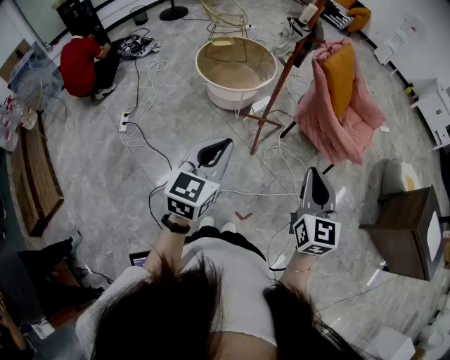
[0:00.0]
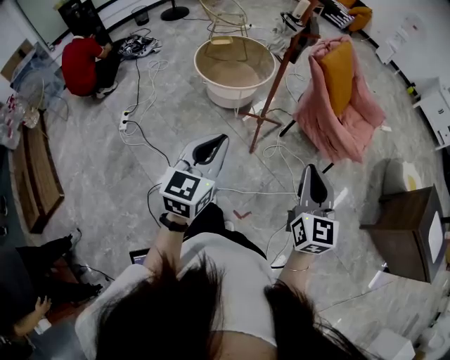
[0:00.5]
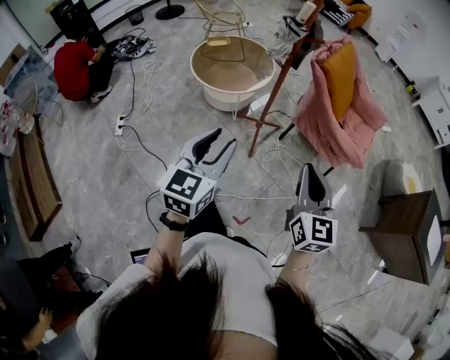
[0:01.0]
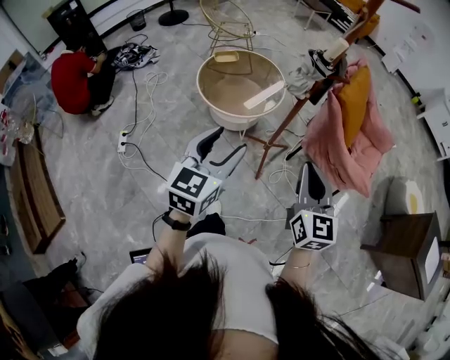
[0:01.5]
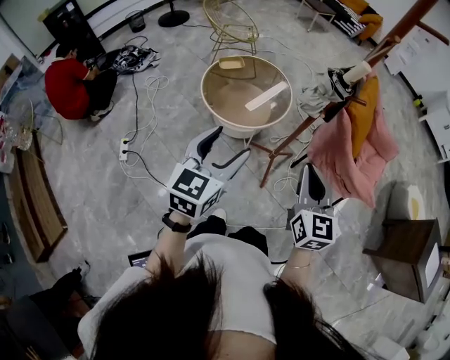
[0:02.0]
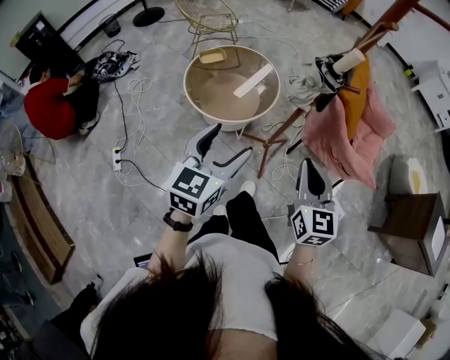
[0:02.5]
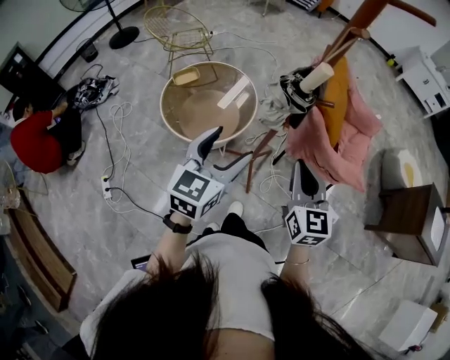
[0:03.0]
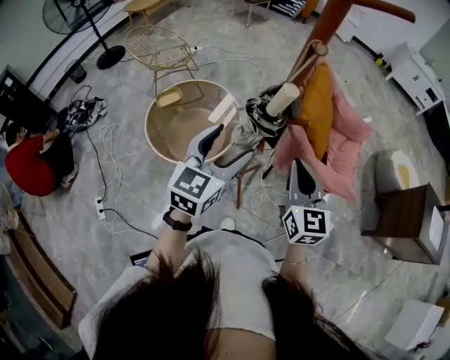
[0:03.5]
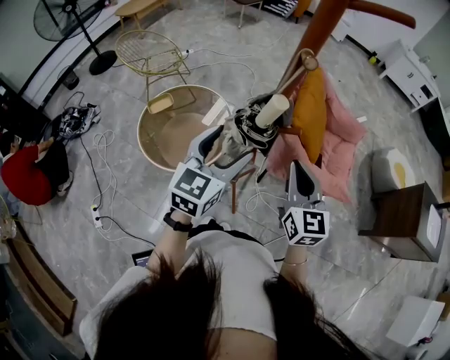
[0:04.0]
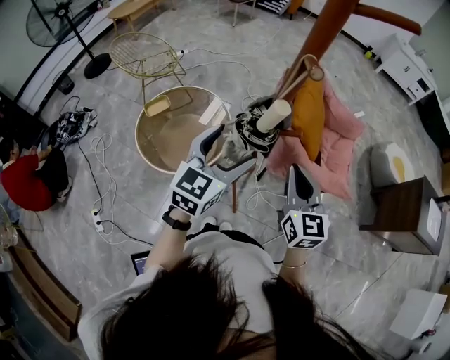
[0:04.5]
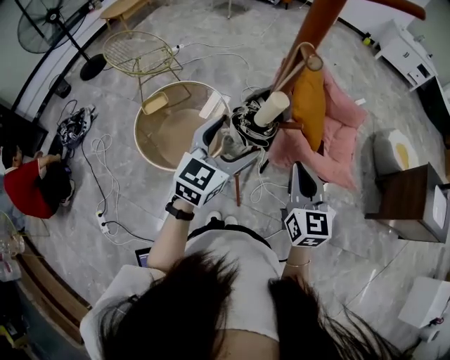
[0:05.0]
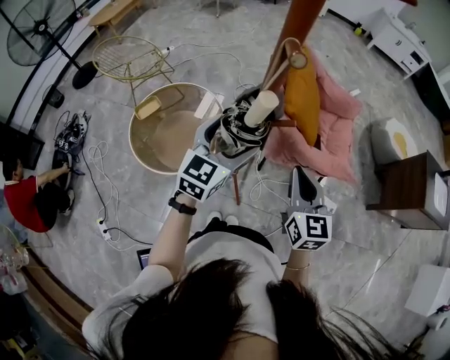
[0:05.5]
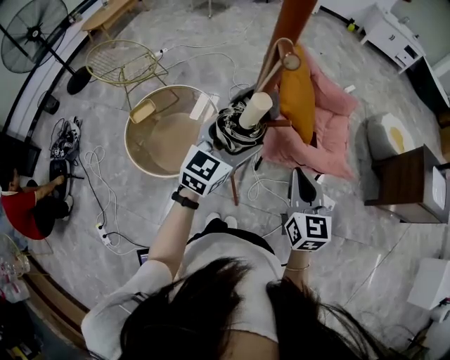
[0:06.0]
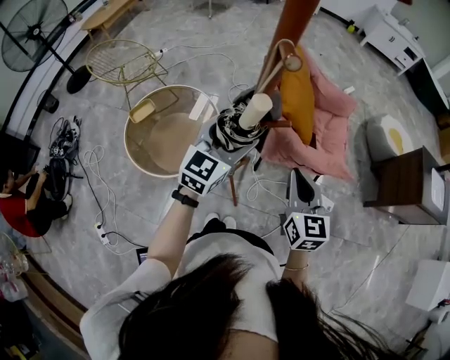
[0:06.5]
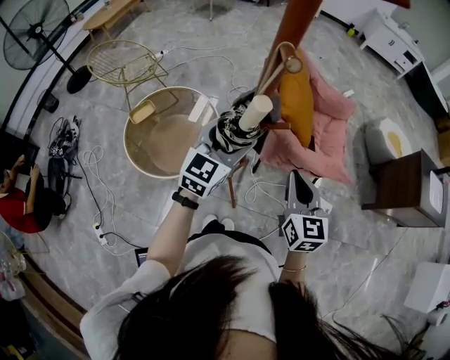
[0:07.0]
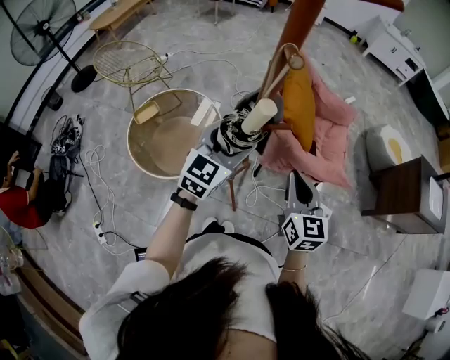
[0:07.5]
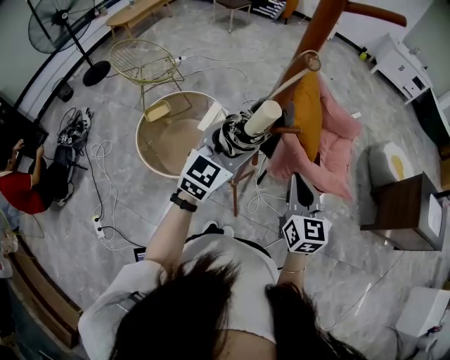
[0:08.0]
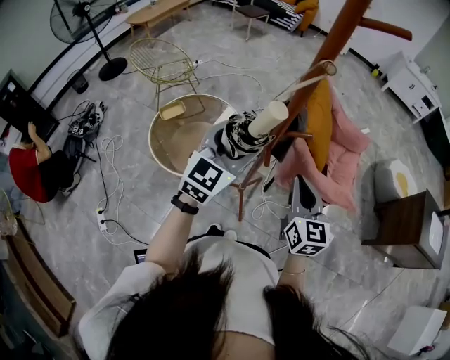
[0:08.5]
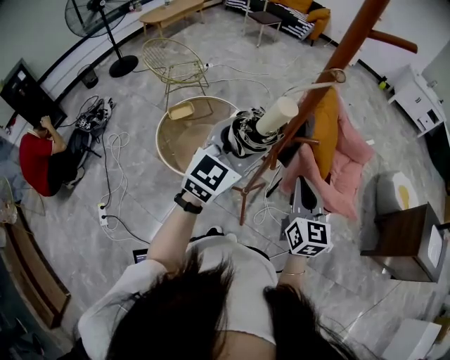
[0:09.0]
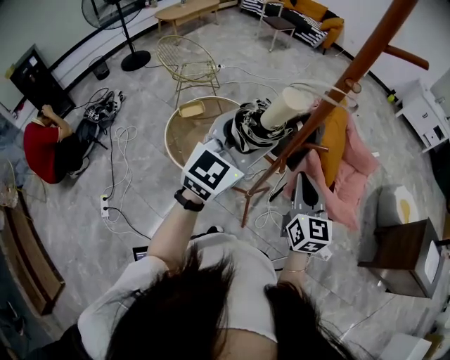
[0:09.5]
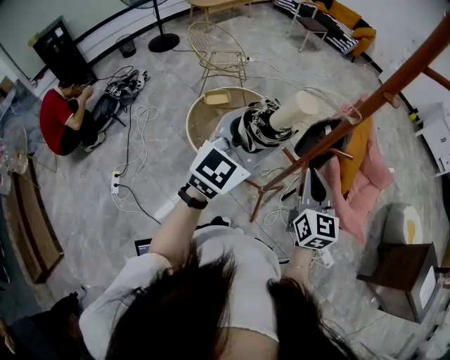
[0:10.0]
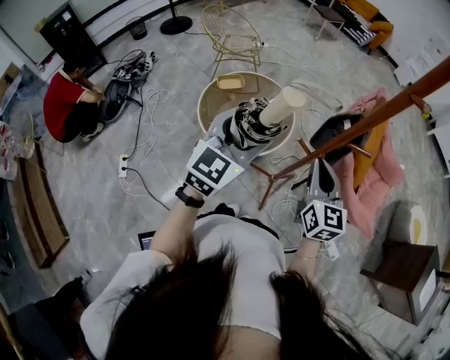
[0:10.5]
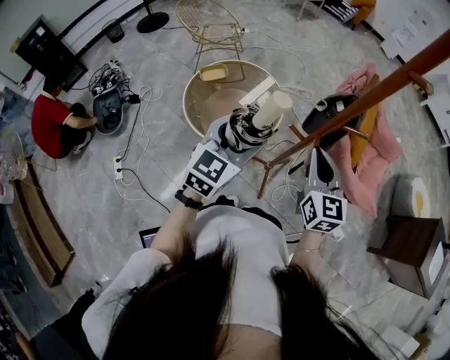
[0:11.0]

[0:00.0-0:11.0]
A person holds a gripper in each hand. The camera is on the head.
0:00.0 to 0:02.0: The two grippers go about 30 cm forward and to the left. The left gripper opens up.
0:02.0 to 0:03.5: Both grippers travel together forward and to the right, some 25 cm.
0:03.5 to 0:05.5: The left gripper shifts roughly 10 cm forward, while the right gripper changes place by some 5 cm.
0:05.5 to 0:07.5: There are only small adjustments of the grippers.
0:07.5 to 0:09.0: The right gripper travels to the left by some 5 cm. Meanwhile the left gripper moves upward, backward and to the left, about 15 cm.
0:09.0 to 0:11.0: The left gripper travels to the left and downward by approximately 15 cm. The right gripper shifts some 10 cm to the left.

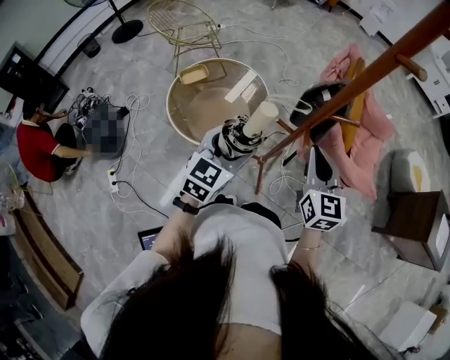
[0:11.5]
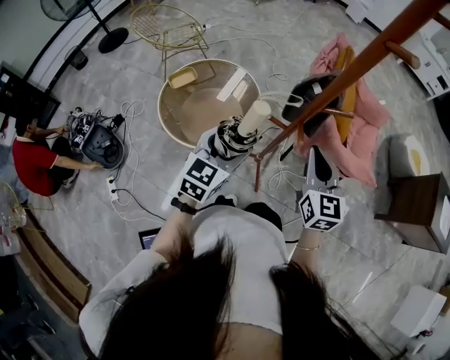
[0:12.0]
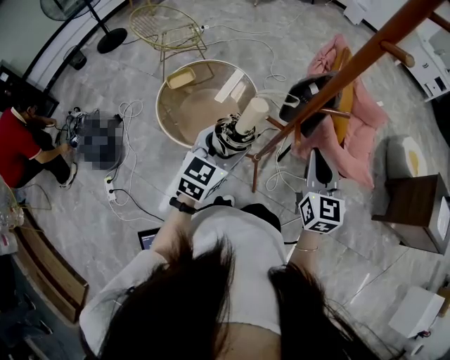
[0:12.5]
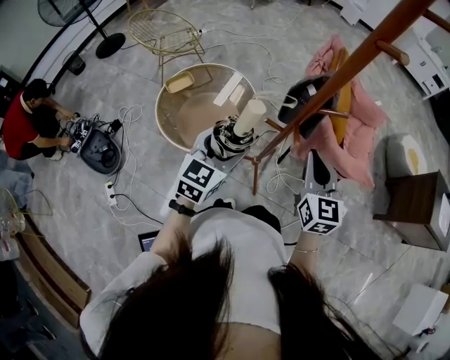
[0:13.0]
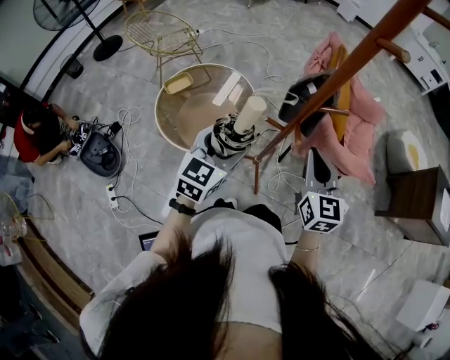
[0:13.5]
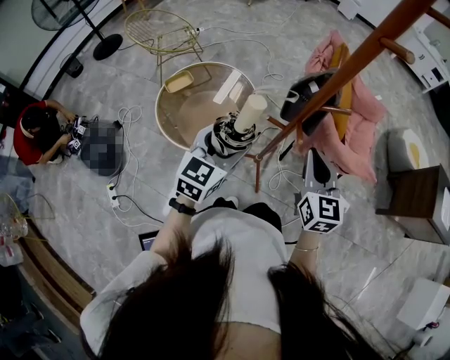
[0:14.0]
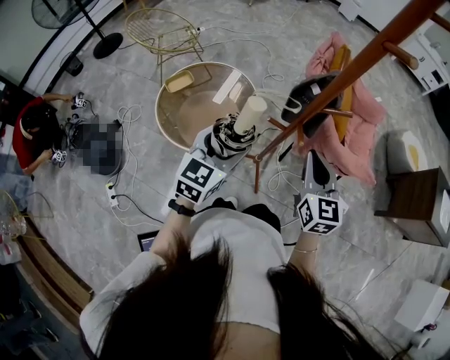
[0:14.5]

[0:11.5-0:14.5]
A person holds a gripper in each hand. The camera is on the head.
0:11.5 to 0:13.0: The grippers stay close to where they were, moving slightly.
0:13.0 to 0:14.5: Neither gripper changes place.

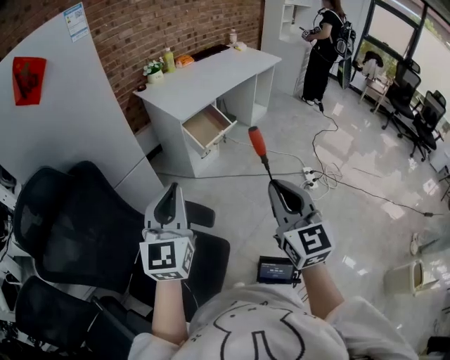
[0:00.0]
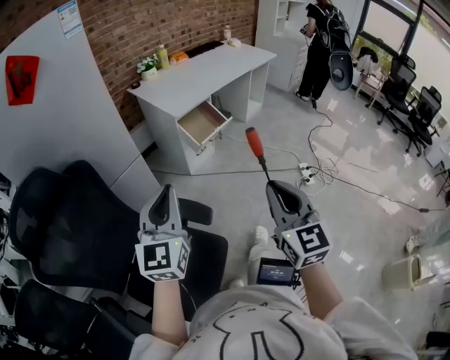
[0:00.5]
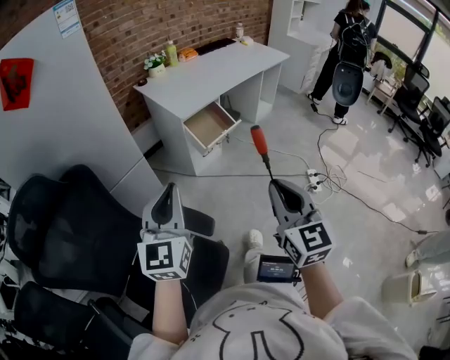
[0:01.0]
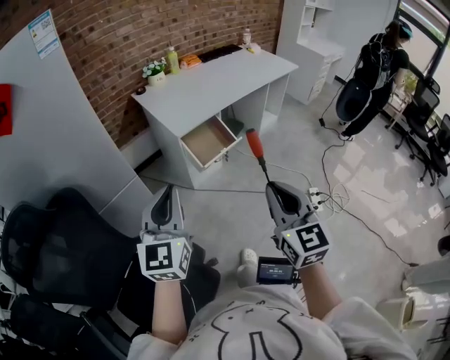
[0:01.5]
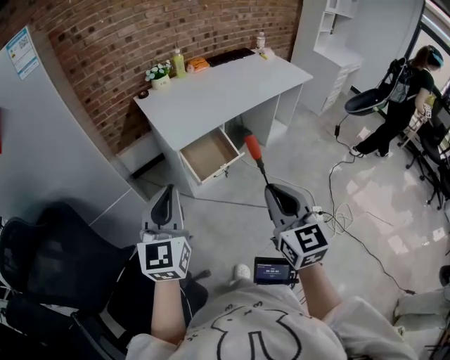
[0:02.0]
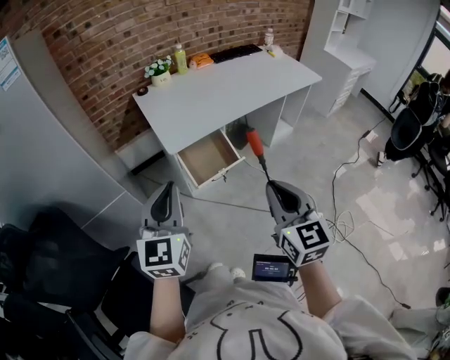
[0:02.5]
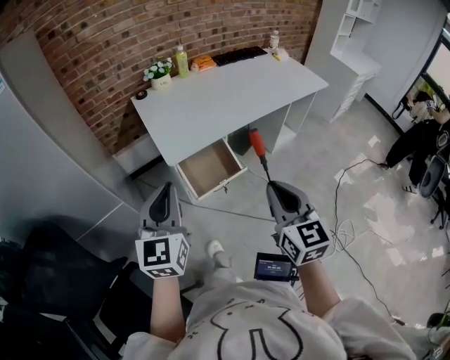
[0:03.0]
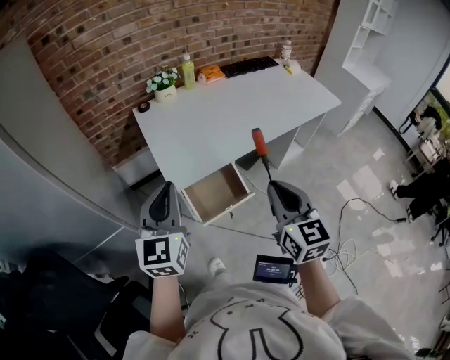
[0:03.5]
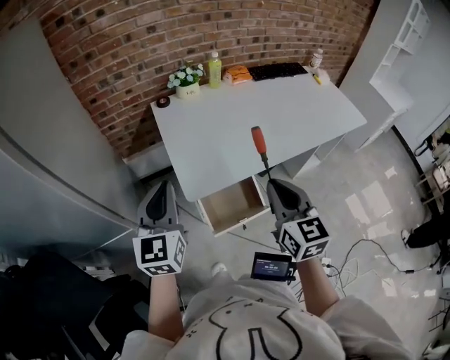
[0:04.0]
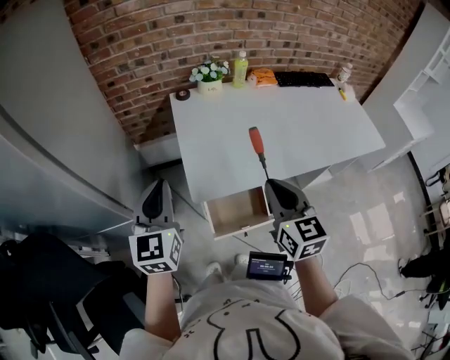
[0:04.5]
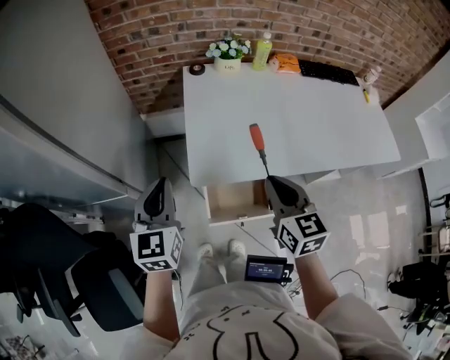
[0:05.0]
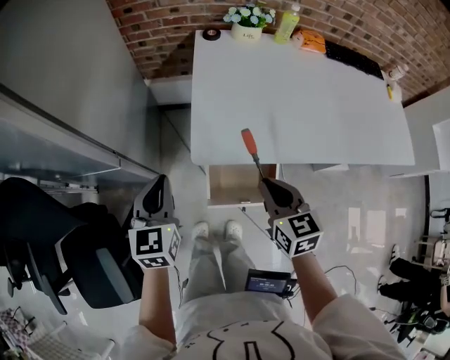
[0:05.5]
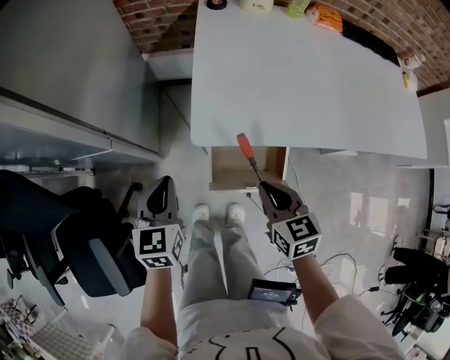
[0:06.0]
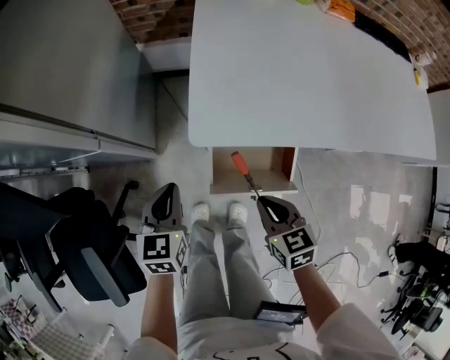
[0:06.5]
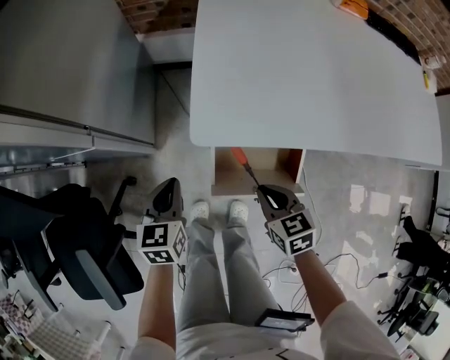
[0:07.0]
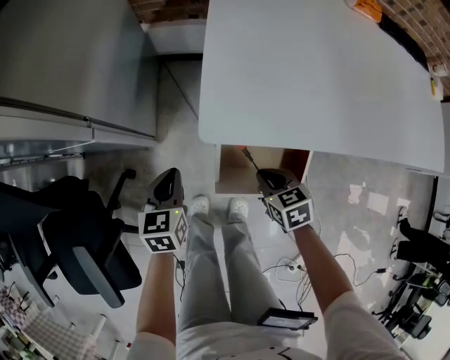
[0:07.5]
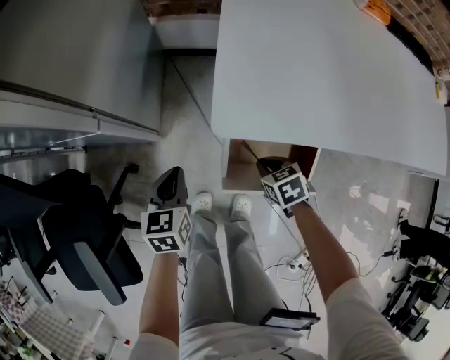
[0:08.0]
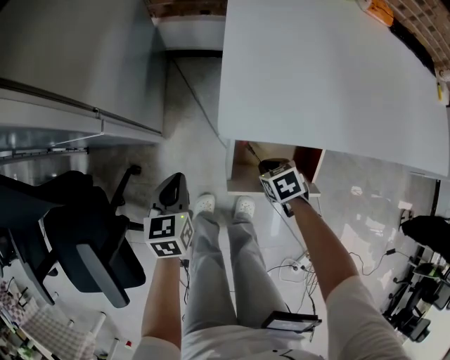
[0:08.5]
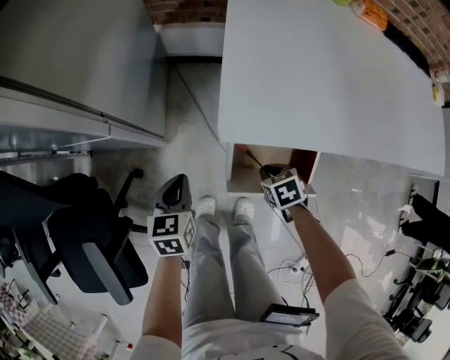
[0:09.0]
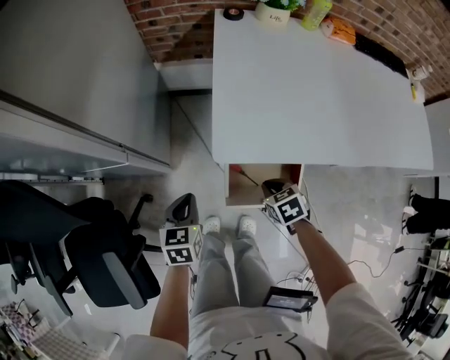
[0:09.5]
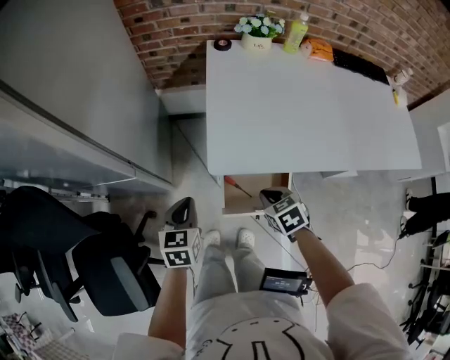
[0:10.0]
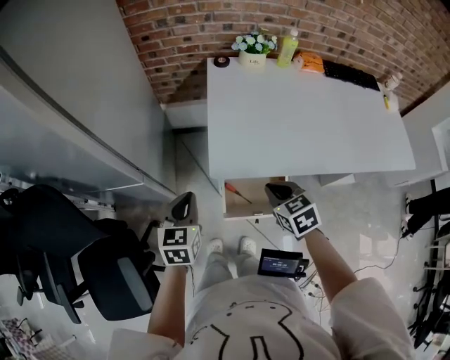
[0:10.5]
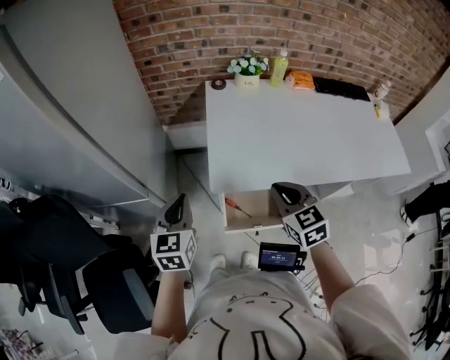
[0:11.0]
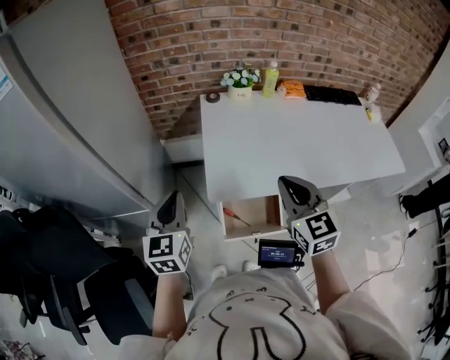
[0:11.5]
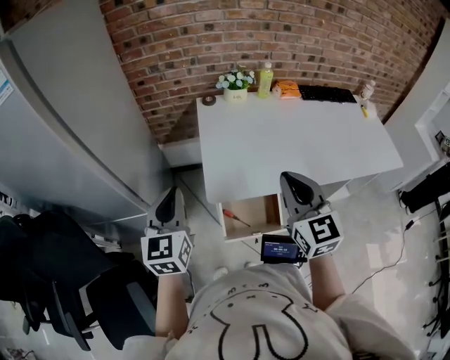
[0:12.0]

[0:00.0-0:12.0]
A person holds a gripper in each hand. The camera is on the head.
0:00.0 to 0:02.0: Both grippers move forward, roughly 30 cm.
0:02.0 to 0:04.0: Both grippers travel together forward, roughly 35 cm.
0:04.0 to 0:06.0: Both grippers move downward, roughly 25 cm. The right gripper changes its angle by approximately 40 degrees. Meanwhile the left gripper swivels about 30 degrees.
0:06.0 to 0:08.0: Both grippers move downward, approximately 20 cm. The right gripper changes its angle by approximately 30 degrees.
0:08.0 to 0:10.0: The two grippers go roughly 15 cm upward.
0:10.0 to 0:12.0: Both grippers move upward, approximately 30 cm. The right gripper angles its fingers upward, by approximately 50 degrees. Meanwhile the left gripper changes its angle by about 30 degrees.

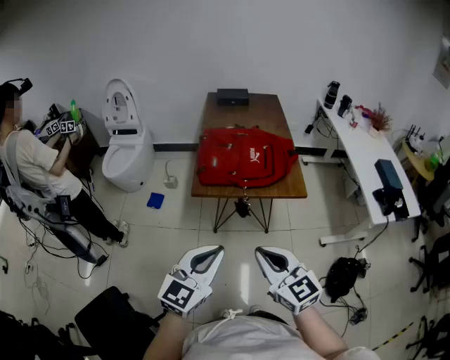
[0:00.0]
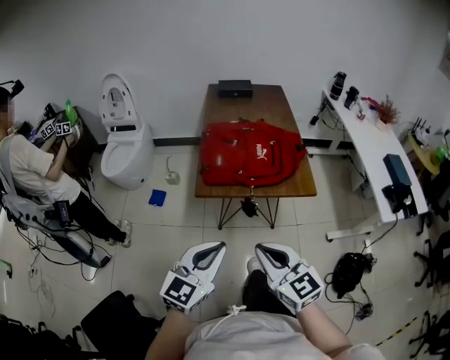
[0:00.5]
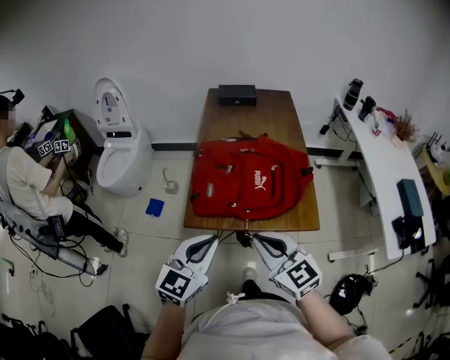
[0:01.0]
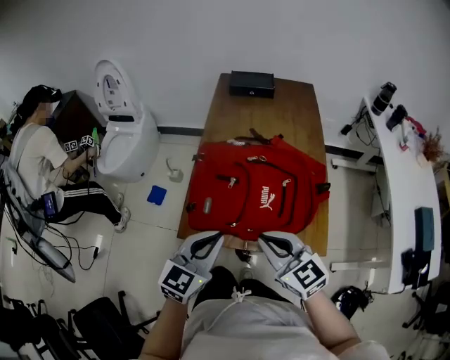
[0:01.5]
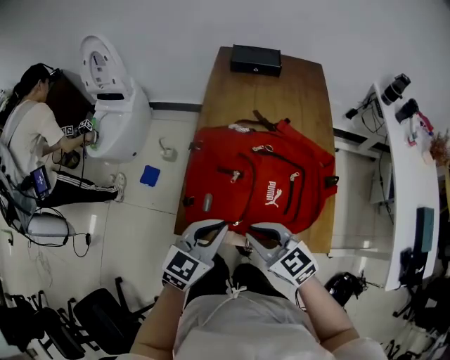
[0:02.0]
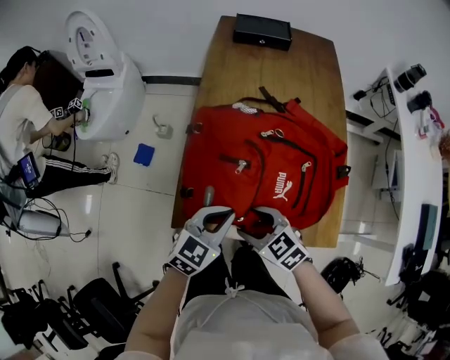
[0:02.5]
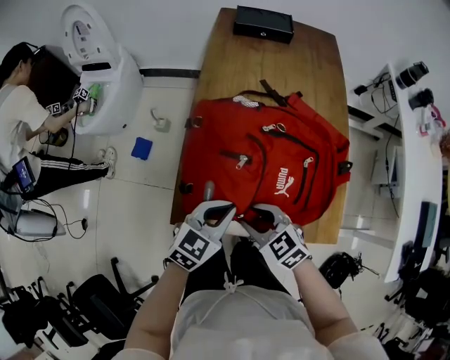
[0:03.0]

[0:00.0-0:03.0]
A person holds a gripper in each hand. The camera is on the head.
0:00.0 to 0:01.5: Both grippers move forward, roughly 35 cm.
0:01.5 to 0:03.0: The right gripper heads downward, covering roughly 15 cm, swivels some 20 degrees, and opens up. Meanwhile the left gripper moves downward and forward, about 15 cm.
